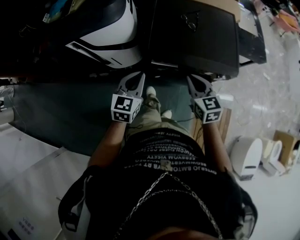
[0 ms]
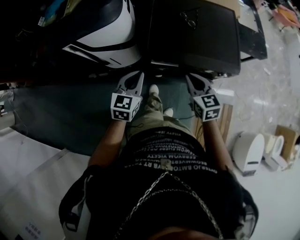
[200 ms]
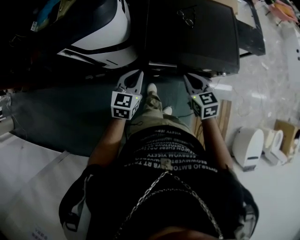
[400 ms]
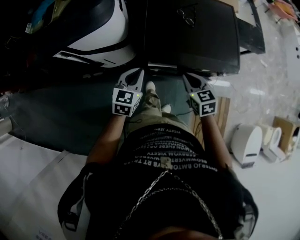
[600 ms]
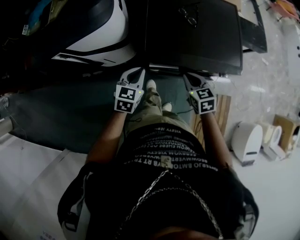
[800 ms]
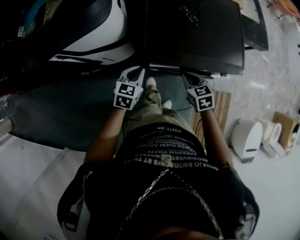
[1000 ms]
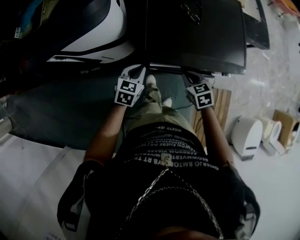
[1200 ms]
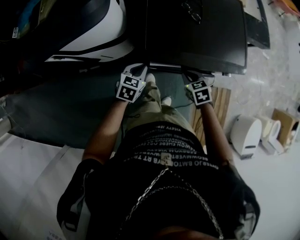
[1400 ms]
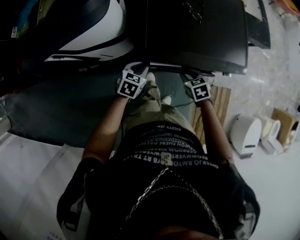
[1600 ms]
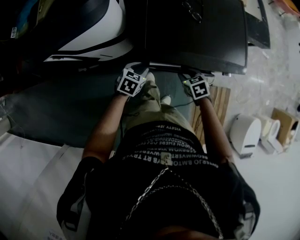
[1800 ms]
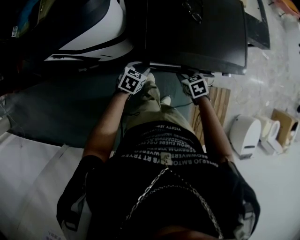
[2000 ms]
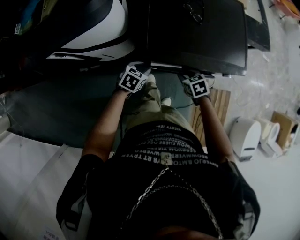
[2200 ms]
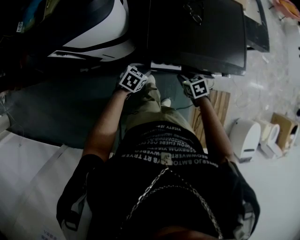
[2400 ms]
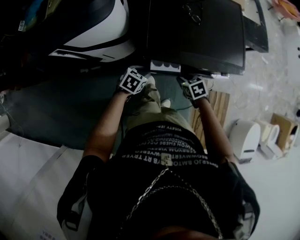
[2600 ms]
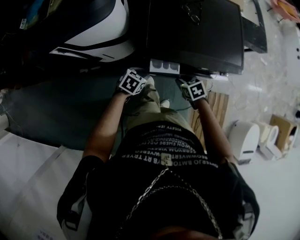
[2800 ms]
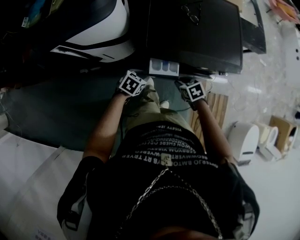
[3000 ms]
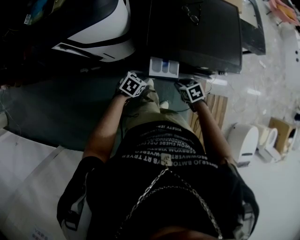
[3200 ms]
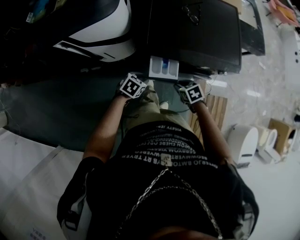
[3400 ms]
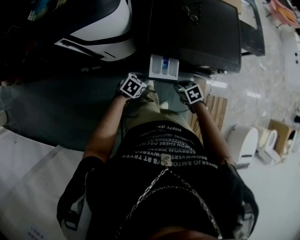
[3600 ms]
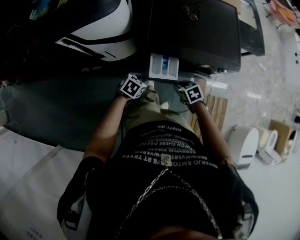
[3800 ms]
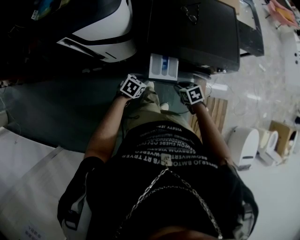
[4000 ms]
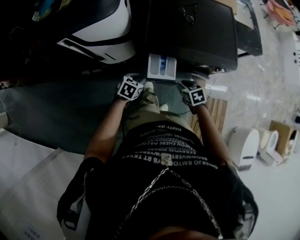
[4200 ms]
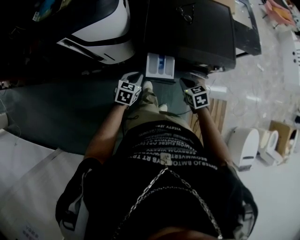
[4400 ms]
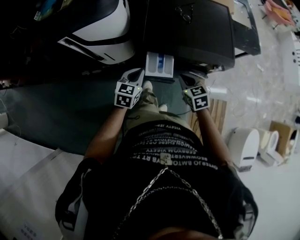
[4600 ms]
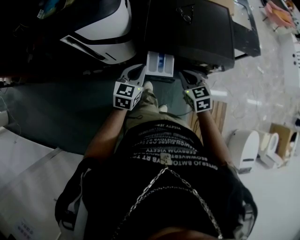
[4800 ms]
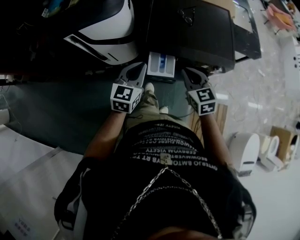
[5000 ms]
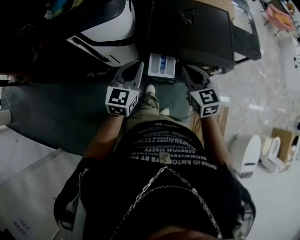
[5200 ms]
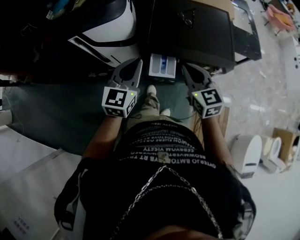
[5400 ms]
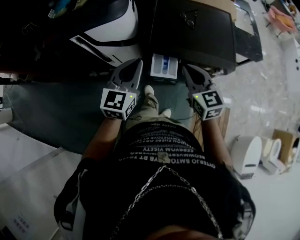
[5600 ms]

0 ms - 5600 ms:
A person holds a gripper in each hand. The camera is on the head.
0 ms - 1400 ms: The right gripper heads downward, covering some 20 cm, and tips its fingers downward by some 30 degrees. Meanwhile the left gripper travels downward and forward by about 20 cm, and rotates roughly 30 degrees.
1400 ms - 2800 ms: Both grippers move backward, about 5 cm. The right gripper opens up, while the left gripper opens.
2800 ms - 4200 ms: The left gripper changes place by approximately 5 cm, while the right gripper ends up roughly 5 cm from where it was.
4200 ms - 5600 ms: Both grippers move upward, roughly 30 cm. The right gripper angles its fingers upward, by about 40 degrees, and closes. Meanwhile the left gripper tilts its fingers some 50 degrees upward, and closes up.

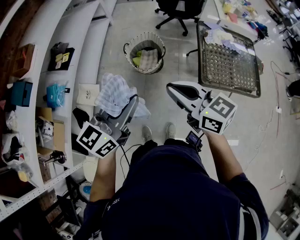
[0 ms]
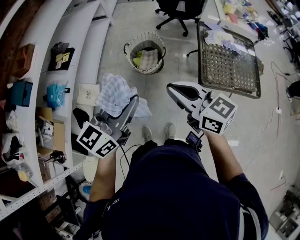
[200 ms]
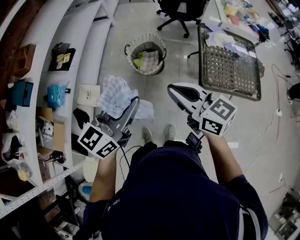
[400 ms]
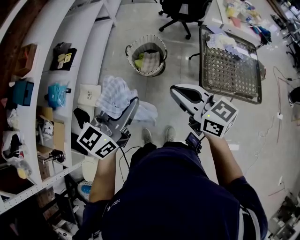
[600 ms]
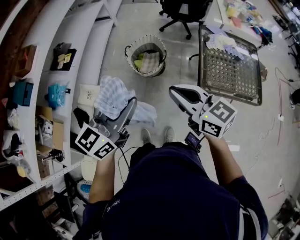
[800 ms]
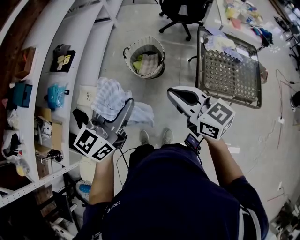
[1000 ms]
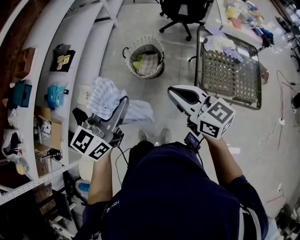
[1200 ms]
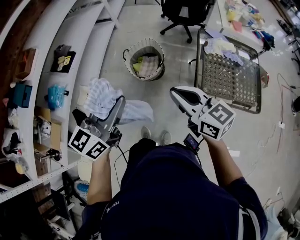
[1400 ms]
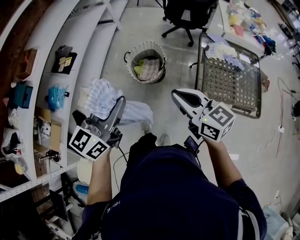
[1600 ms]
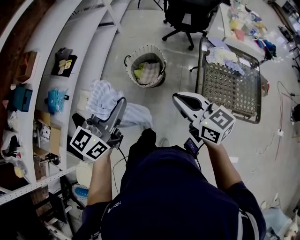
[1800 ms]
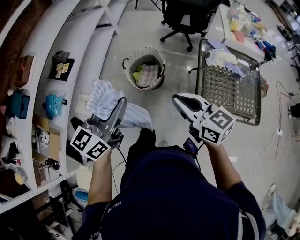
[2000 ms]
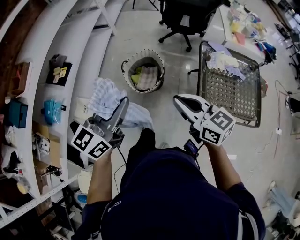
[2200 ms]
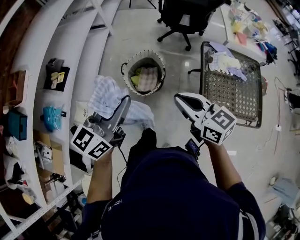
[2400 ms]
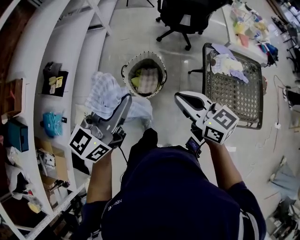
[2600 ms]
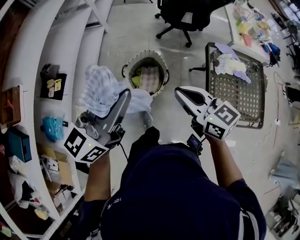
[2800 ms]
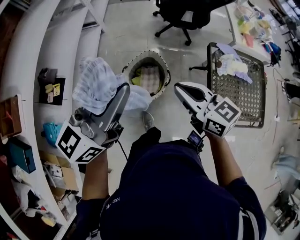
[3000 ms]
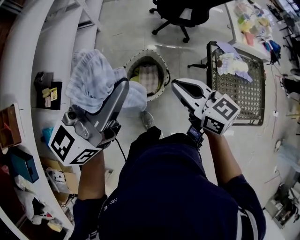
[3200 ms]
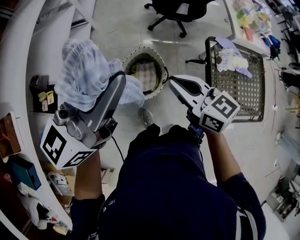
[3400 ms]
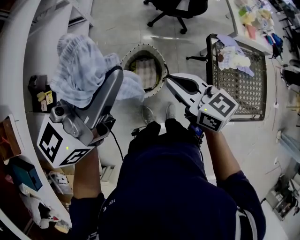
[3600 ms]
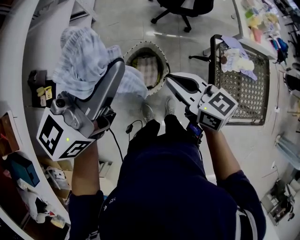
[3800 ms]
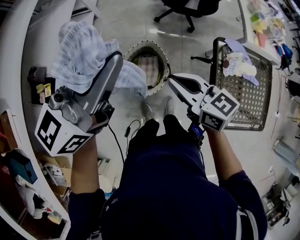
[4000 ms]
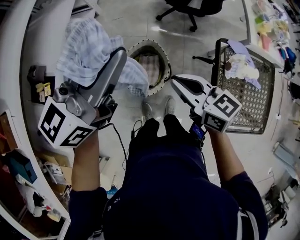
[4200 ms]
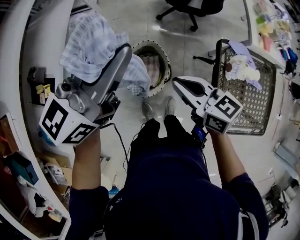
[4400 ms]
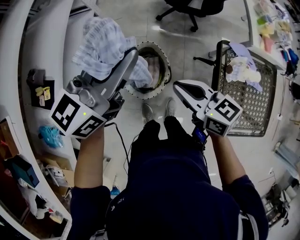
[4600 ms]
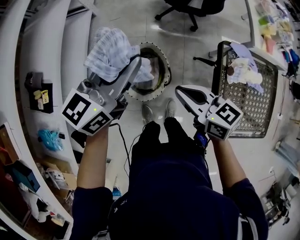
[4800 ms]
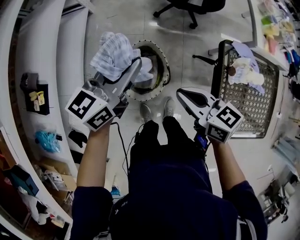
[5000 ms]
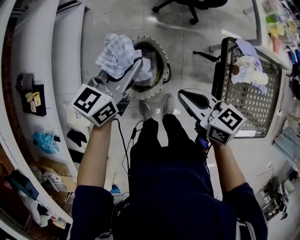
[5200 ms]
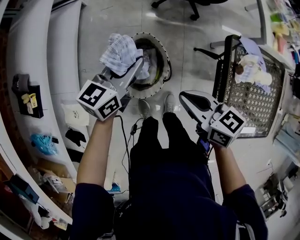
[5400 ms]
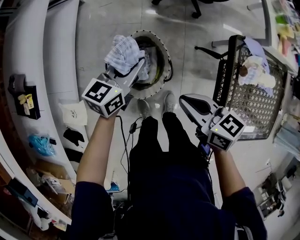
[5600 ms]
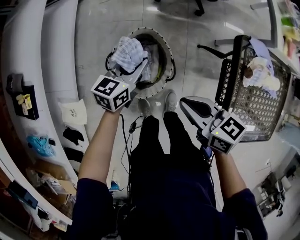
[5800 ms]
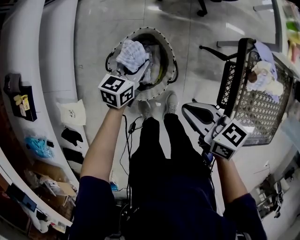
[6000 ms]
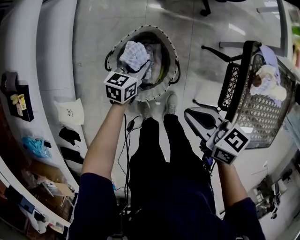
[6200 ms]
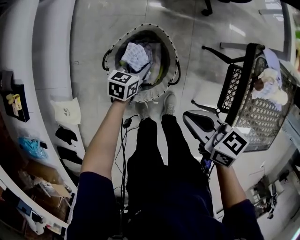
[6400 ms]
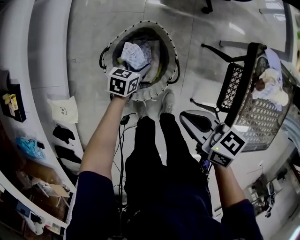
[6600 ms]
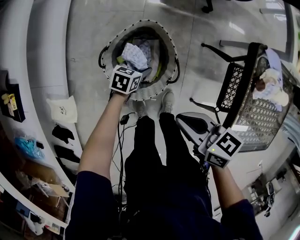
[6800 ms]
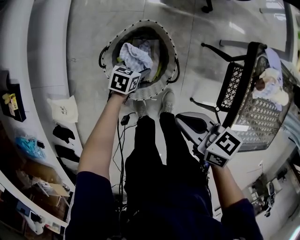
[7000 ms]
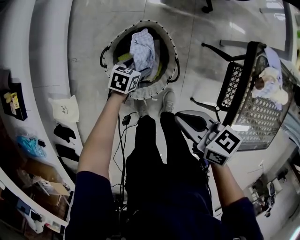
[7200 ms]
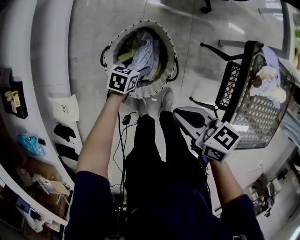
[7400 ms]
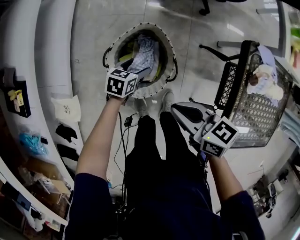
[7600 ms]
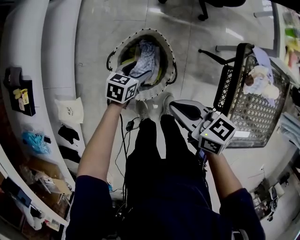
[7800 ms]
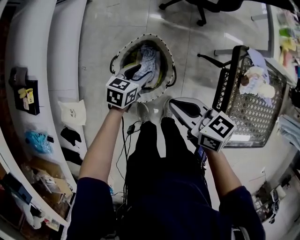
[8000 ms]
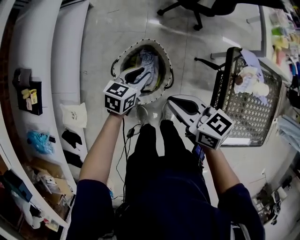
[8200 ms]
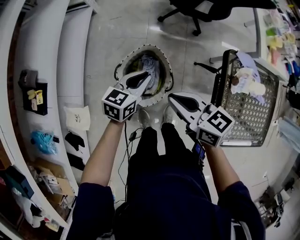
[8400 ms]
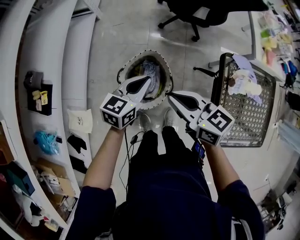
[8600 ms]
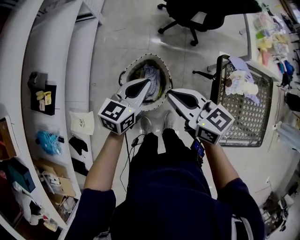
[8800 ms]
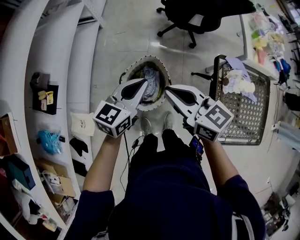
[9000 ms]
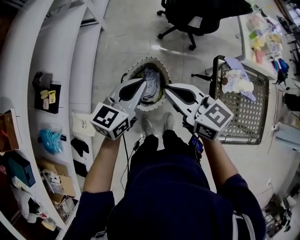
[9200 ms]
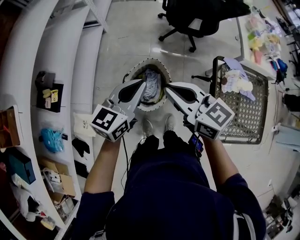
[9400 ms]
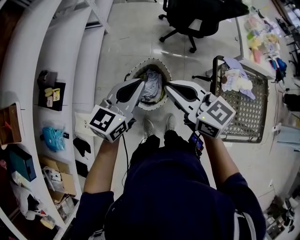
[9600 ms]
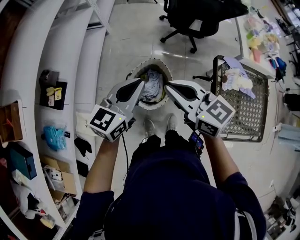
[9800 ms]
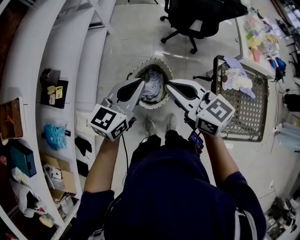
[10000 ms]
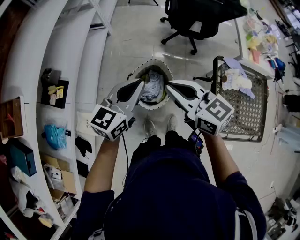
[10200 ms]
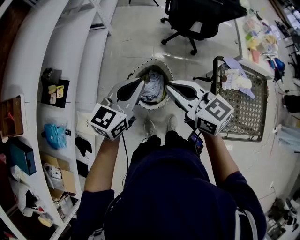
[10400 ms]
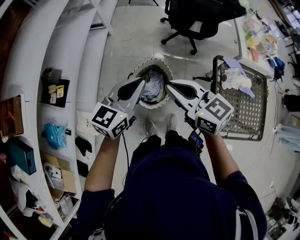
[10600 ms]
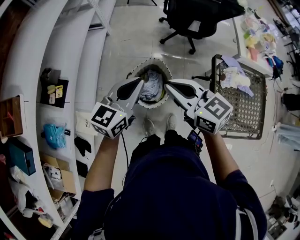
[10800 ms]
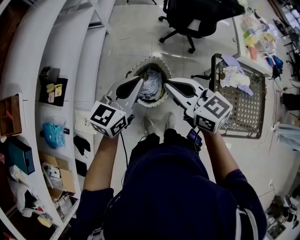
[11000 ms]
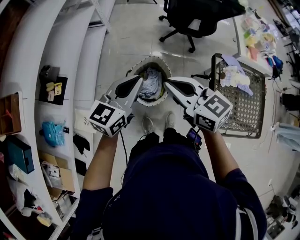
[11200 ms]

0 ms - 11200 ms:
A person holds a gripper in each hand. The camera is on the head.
0 ms - 1600 ms: The left gripper heads forward and to the right, covering some 10 cm. Meanwhile the right gripper moves to the right and forward, approximately 10 cm.
1600 ms - 3200 ms: Both grippers travel together forward, roughly 35 cm. The left gripper swivels approximately 20 degrees.
3200 ms - 4800 ms: The left gripper is displaced forward, downward and to the right by about 25 cm, while the right gripper is displaced downward, forward and to the right by approximately 15 cm.
4800 ms - 6400 ms: The left gripper travels downward by about 50 cm, and tilts its fingers some 30 degrees downward; the right gripper moves downward, approximately 20 cm.
6400 ms - 8000 ms: The left gripper travels upward by some 10 cm, and opens. The right gripper is displaced upward by approximately 5 cm.
8000 ms - 9600 ms: The left gripper shifts about 35 cm upward, swivels about 30 degrees, and closes, while the right gripper goes roughly 25 cm upward, and turns by roughly 30 degrees.
9600 ms - 11200 ms: The grippers stay close to where they were, moving slightly.

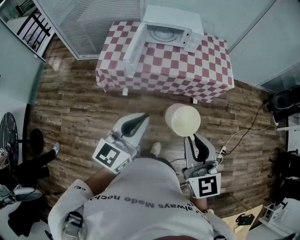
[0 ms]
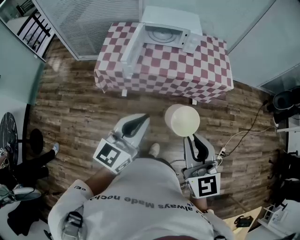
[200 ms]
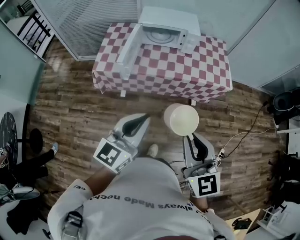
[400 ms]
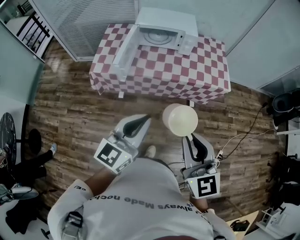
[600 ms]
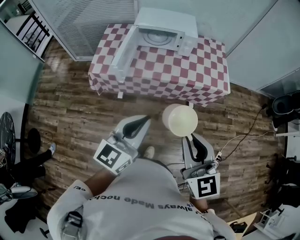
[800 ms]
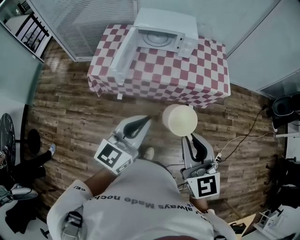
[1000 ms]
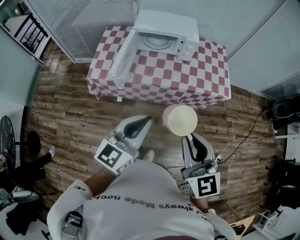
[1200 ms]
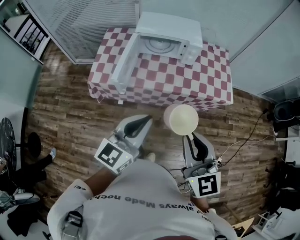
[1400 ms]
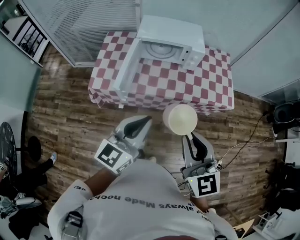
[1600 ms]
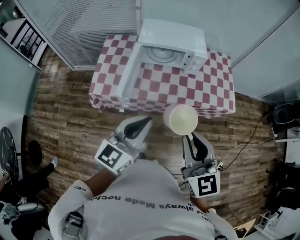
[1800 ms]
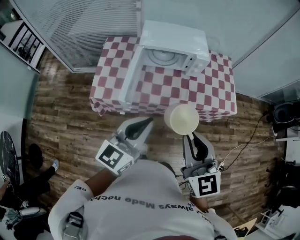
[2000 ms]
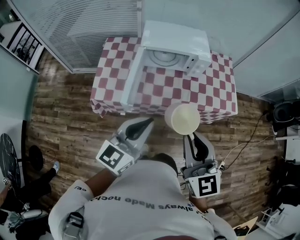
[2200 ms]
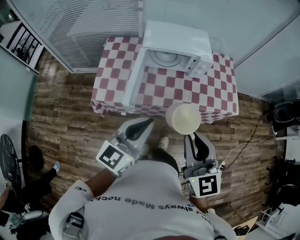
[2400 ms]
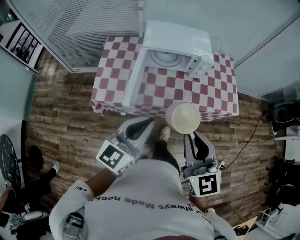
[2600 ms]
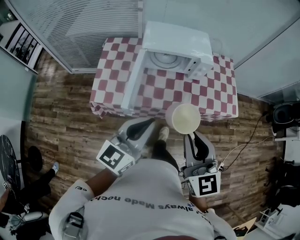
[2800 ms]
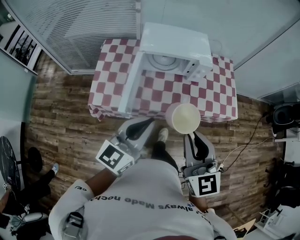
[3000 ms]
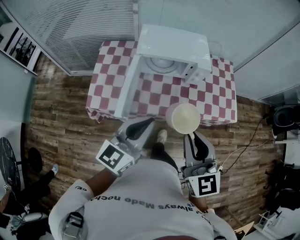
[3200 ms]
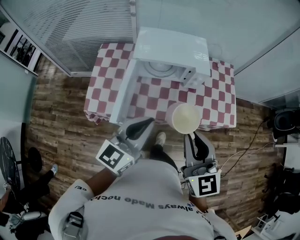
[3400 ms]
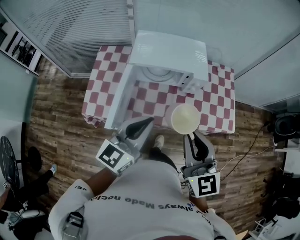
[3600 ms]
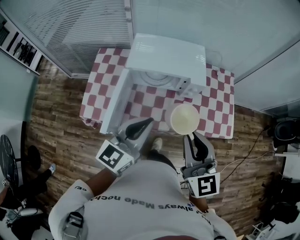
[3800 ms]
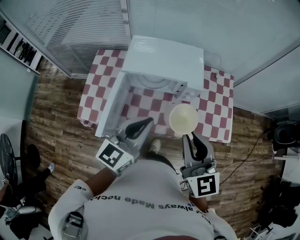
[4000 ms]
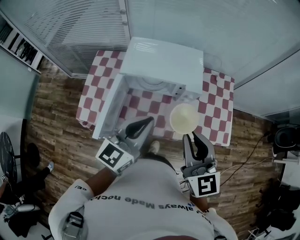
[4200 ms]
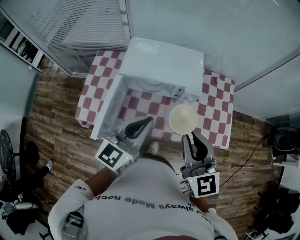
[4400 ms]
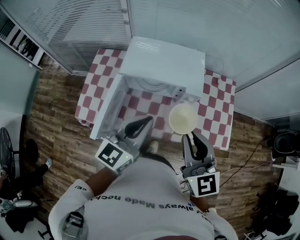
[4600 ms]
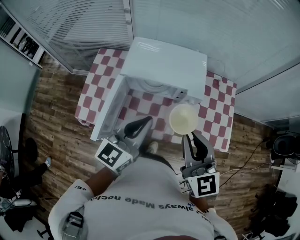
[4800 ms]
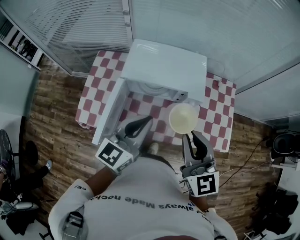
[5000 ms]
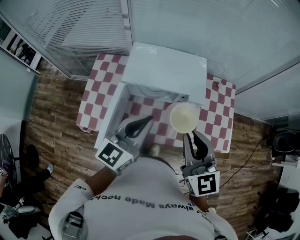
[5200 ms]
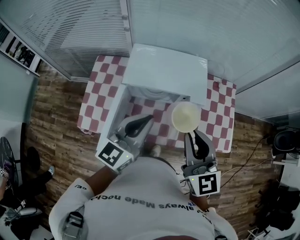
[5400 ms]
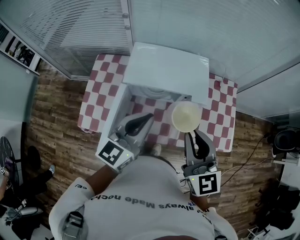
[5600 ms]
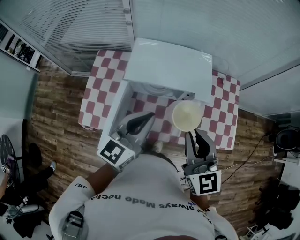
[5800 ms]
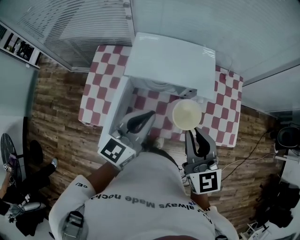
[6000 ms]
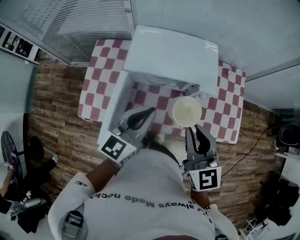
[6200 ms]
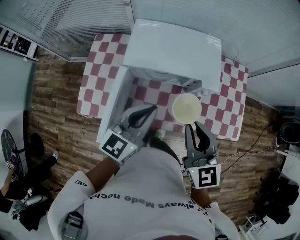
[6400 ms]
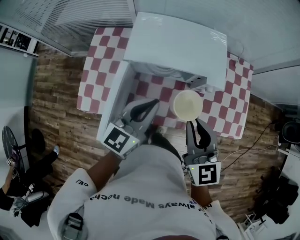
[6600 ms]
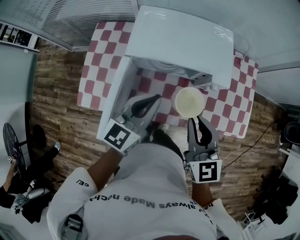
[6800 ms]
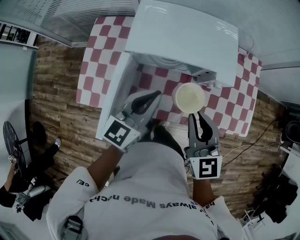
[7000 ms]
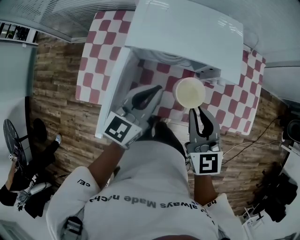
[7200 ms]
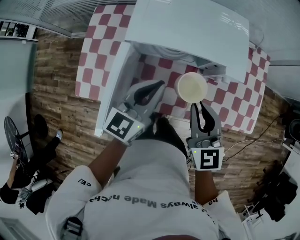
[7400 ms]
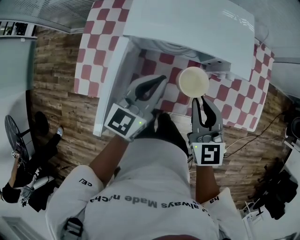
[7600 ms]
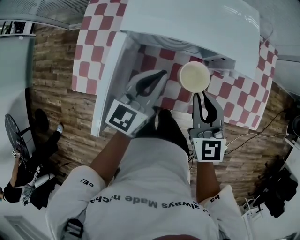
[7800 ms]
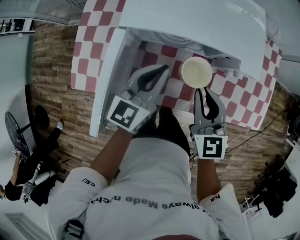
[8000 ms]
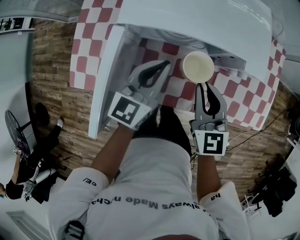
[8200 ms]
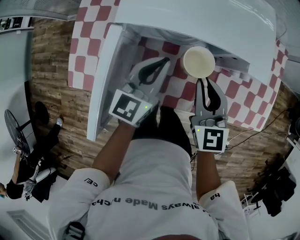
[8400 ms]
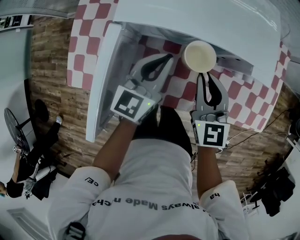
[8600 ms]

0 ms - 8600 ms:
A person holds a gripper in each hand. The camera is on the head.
0 ms - 1400 ms: The two grippers go approximately 15 cm forward.
1400 ms - 2800 ms: Both grippers travel together forward and to the left, approximately 20 cm.
2800 ms - 4400 ms: The two grippers go approximately 25 cm forward and to the right.
4400 ms - 5800 ms: Both grippers travel together forward and to the left, approximately 10 cm.
5800 ms - 7200 ms: Both grippers move downward, approximately 15 cm.
7200 ms - 8600 ms: The grippers both shift downward and forward by some 15 cm.
